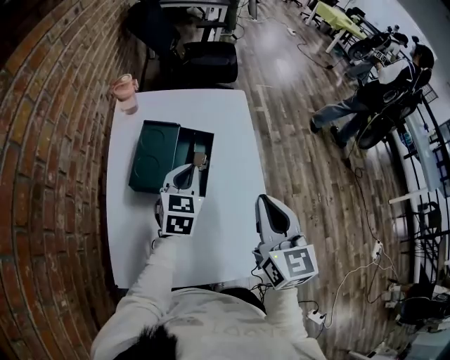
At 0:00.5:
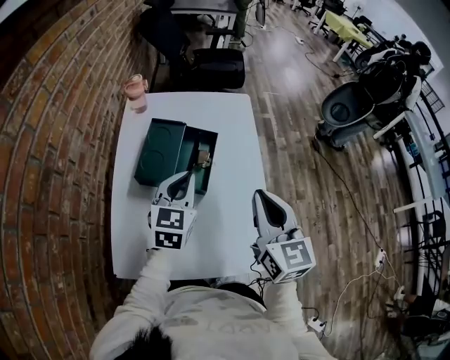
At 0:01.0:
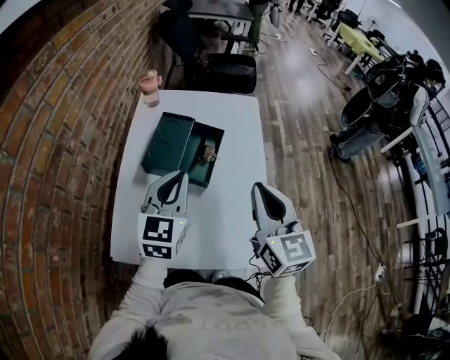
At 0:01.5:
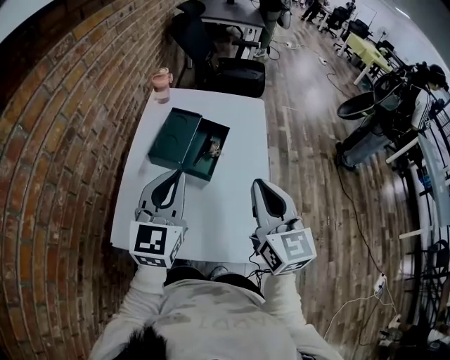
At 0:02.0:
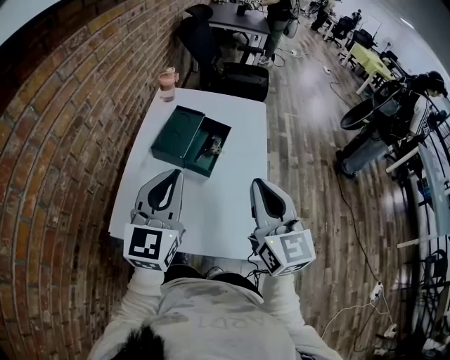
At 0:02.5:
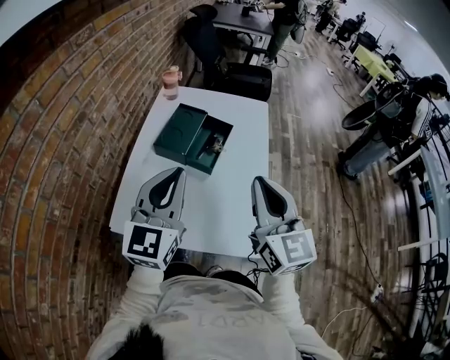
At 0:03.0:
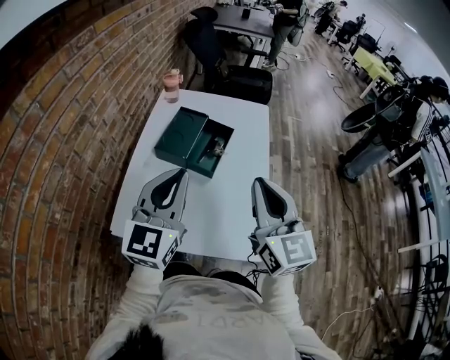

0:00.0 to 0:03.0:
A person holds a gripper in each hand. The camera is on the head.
0:00.0 to 0:01.5: The left gripper heads backward and upward, covering some 25 cm, and rotates about 20 degrees; the right gripper goes some 10 cm backward.
0:01.5 to 0:03.0: The left gripper travels backward by roughly 5 cm.

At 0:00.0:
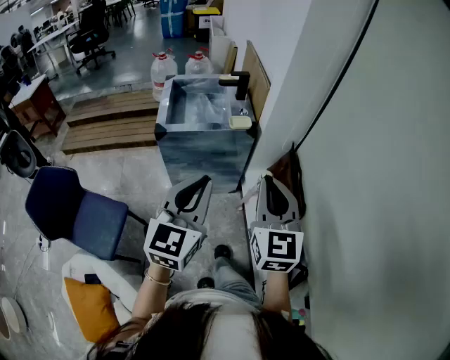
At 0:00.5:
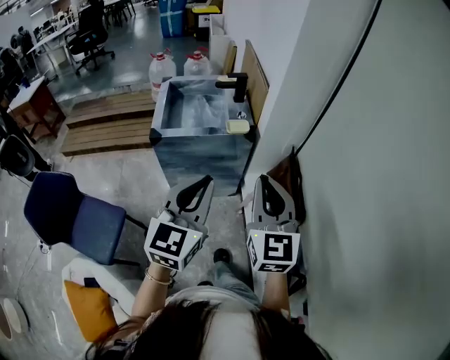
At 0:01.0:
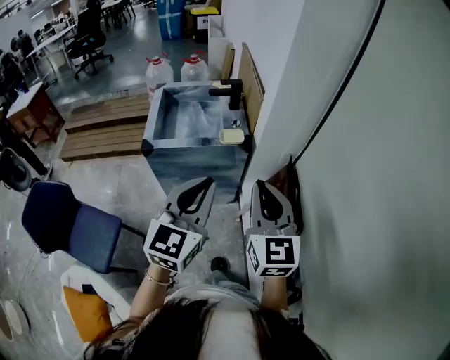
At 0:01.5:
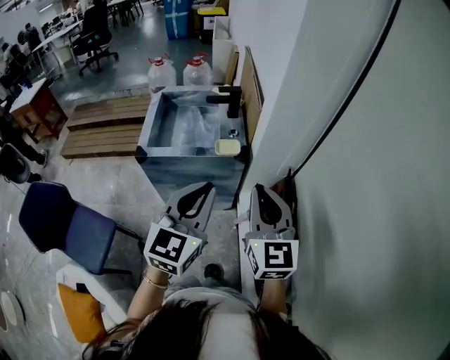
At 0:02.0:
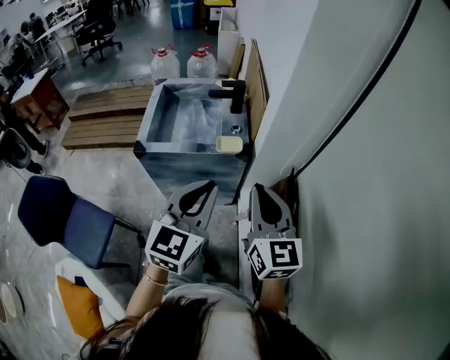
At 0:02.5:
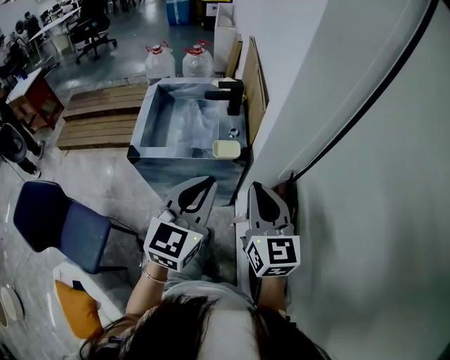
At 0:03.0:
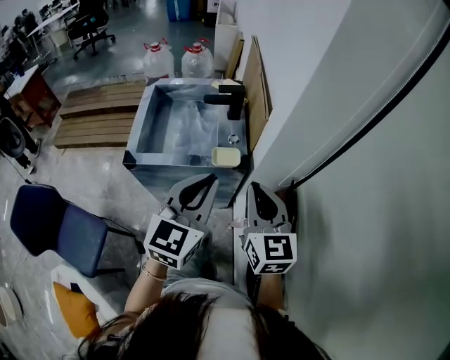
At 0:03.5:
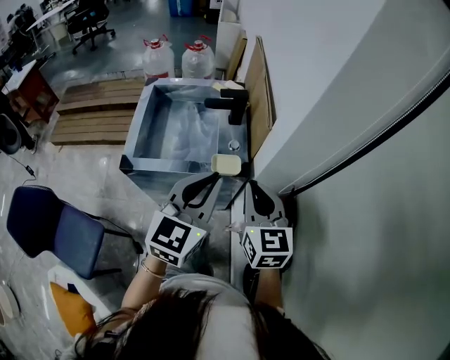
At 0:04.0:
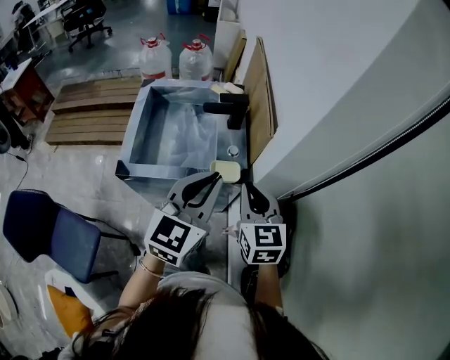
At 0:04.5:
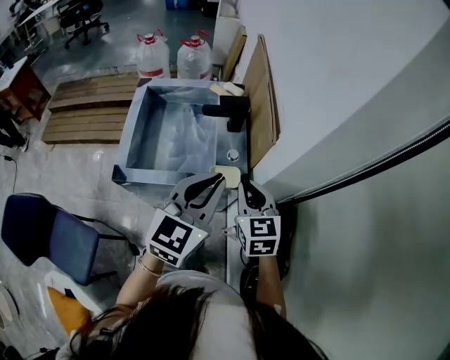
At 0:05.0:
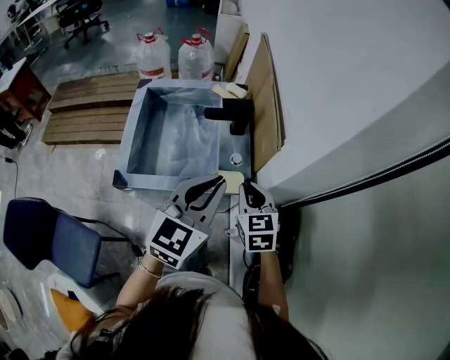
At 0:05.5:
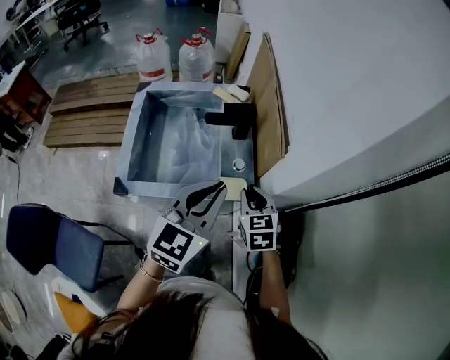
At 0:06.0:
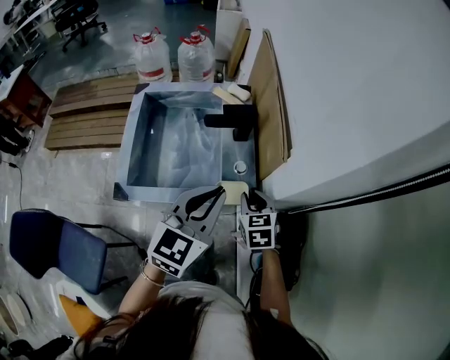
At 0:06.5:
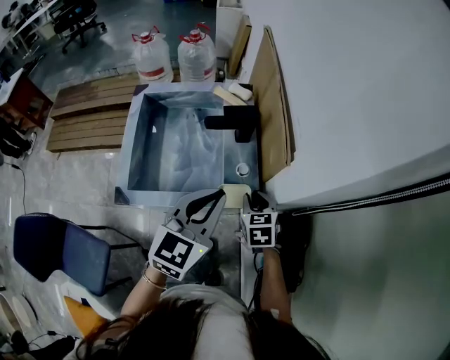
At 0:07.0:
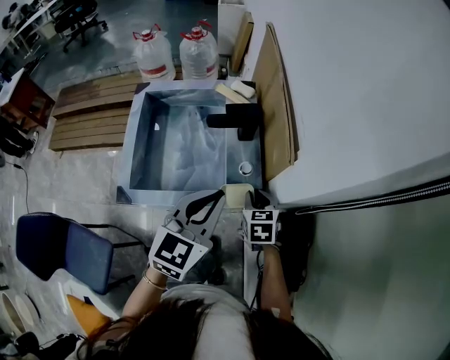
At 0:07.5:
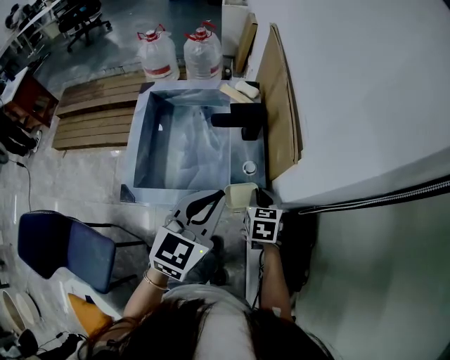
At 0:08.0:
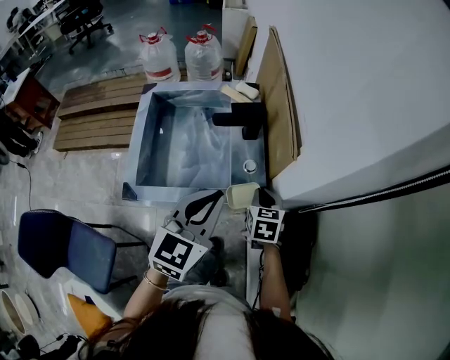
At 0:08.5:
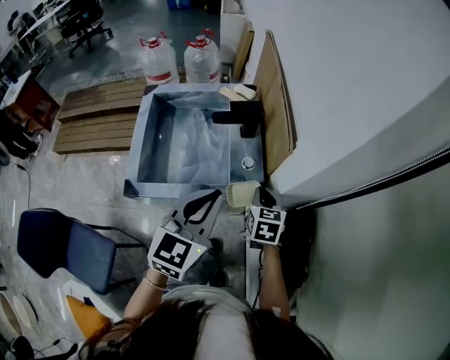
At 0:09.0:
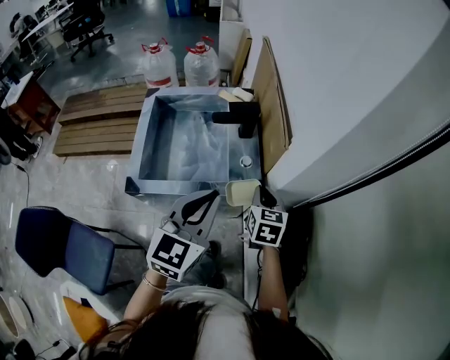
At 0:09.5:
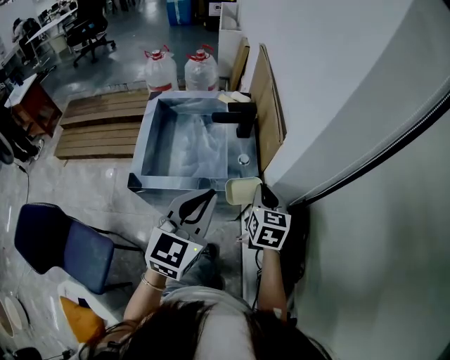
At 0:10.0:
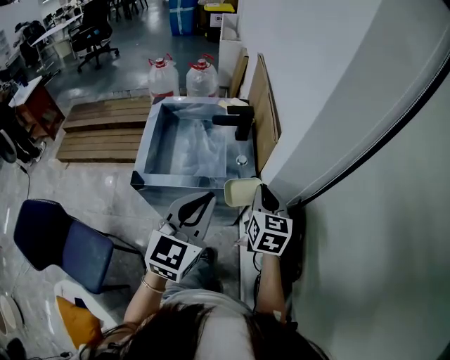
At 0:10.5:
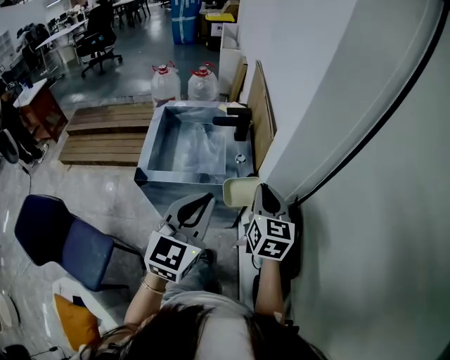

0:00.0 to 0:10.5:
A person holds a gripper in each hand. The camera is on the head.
0:00.0 to 0:02.0: The right gripper heads forward, covering about 20 cm, while the left gripper is displaced forward and to the right by some 20 cm.
0:02.0 to 0:04.0: The left gripper travels forward by about 20 cm; the right gripper goes roughly 20 cm forward and downward.
0:04.0 to 0:06.5: The right gripper travels downward and forward by about 20 cm, and rotates about 30 degrees, while the left gripper shifts approximately 10 cm forward and downward.
0:06.5 to 0:08.5: The left gripper changes place by some 5 cm.
0:08.5 to 0:10.5: The right gripper goes roughly 25 cm upward and backward, and changes its angle by about 20 degrees. Meanwhile the left gripper moves backward and upward, roughly 15 cm.

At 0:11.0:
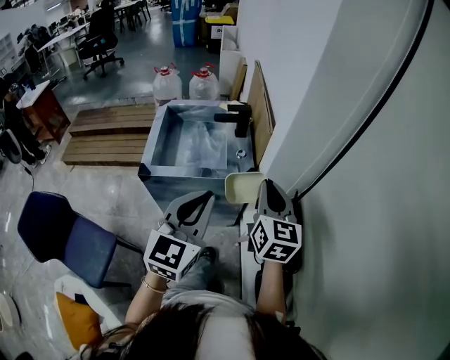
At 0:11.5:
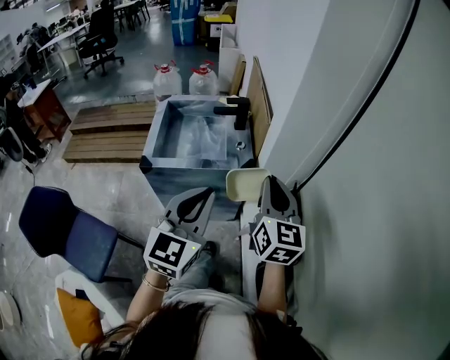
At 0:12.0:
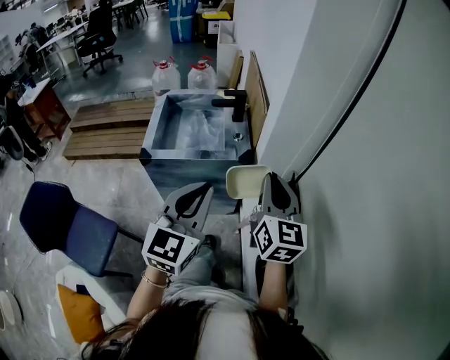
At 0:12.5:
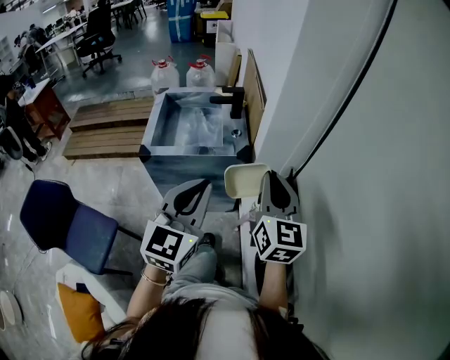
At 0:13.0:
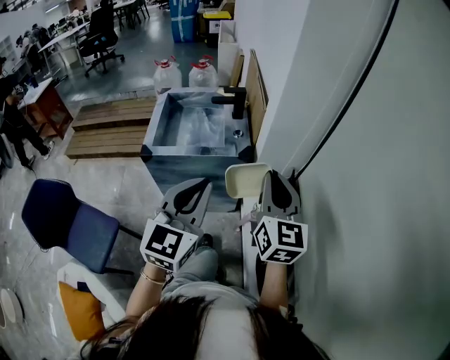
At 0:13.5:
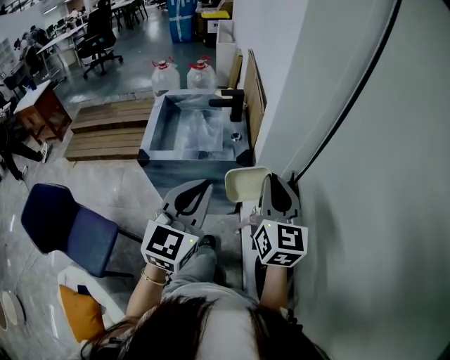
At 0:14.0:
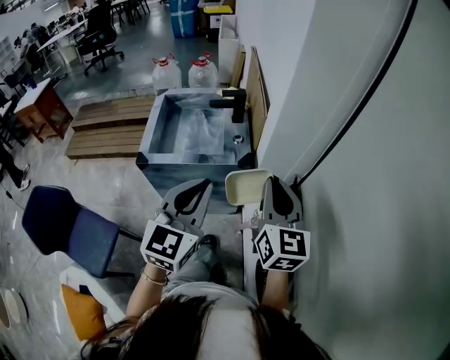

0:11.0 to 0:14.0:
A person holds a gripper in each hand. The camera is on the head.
0:11.0 to 0:12.5: The two grippers go approximately 10 cm backward.
0:12.5 to 0:14.0: The grippers both shift forward by about 5 cm.

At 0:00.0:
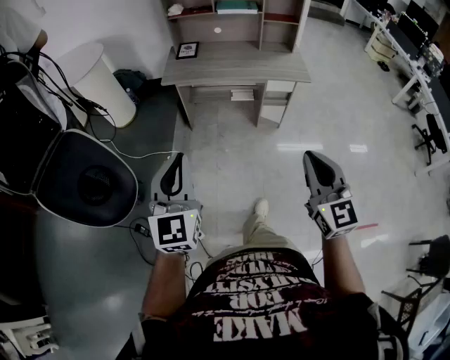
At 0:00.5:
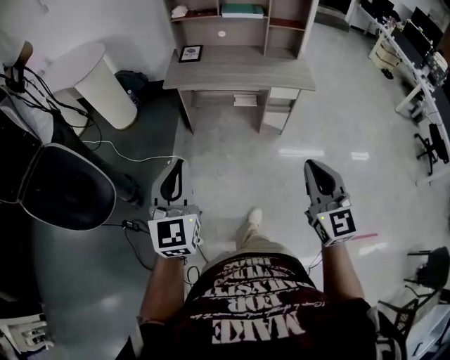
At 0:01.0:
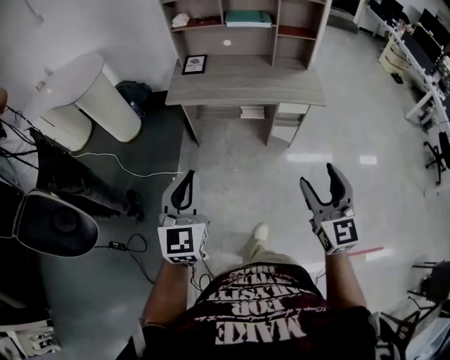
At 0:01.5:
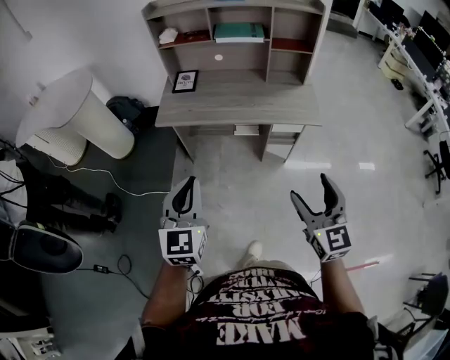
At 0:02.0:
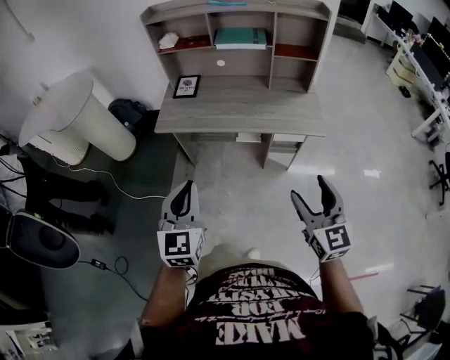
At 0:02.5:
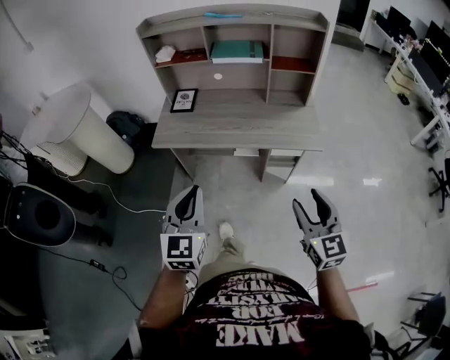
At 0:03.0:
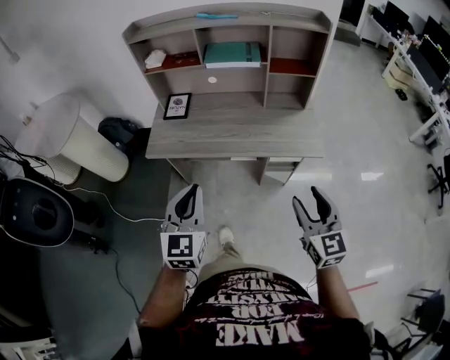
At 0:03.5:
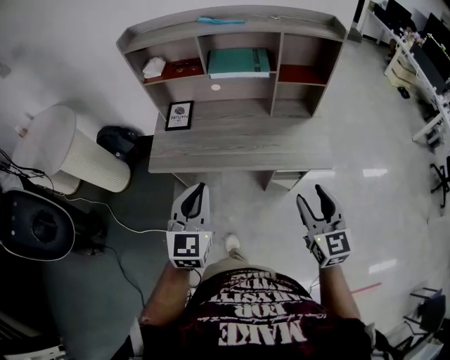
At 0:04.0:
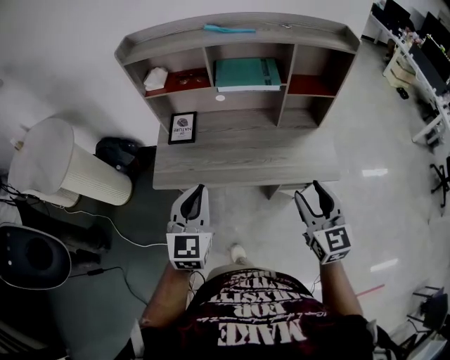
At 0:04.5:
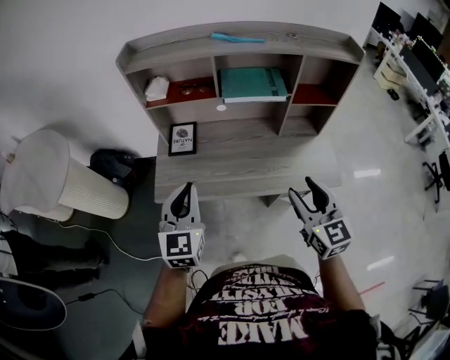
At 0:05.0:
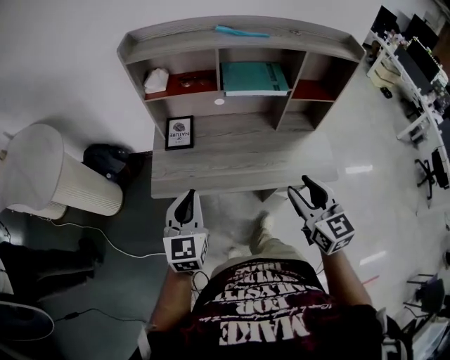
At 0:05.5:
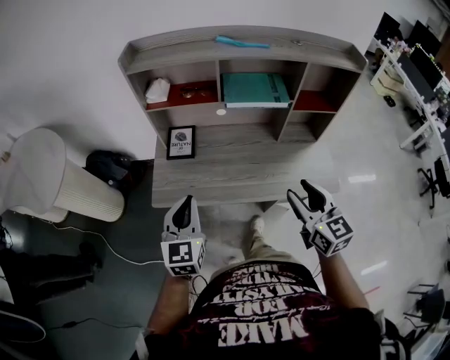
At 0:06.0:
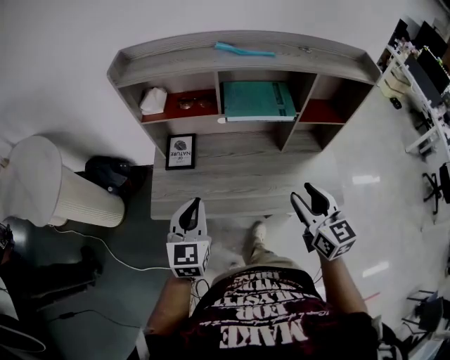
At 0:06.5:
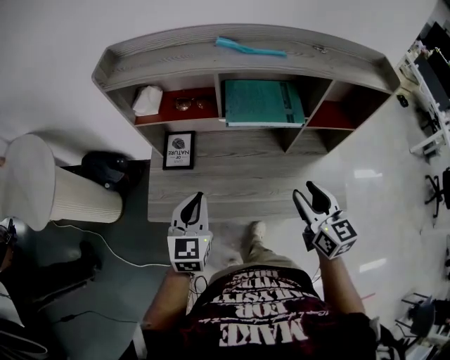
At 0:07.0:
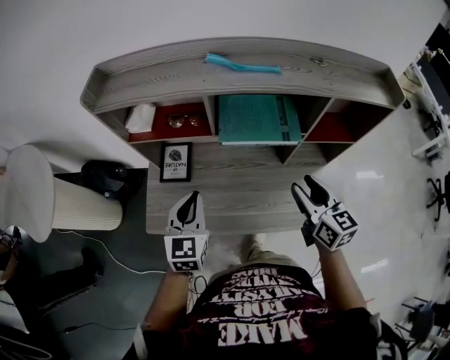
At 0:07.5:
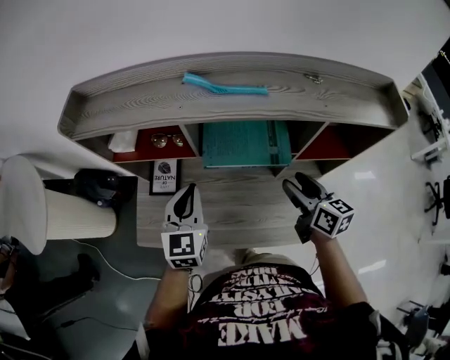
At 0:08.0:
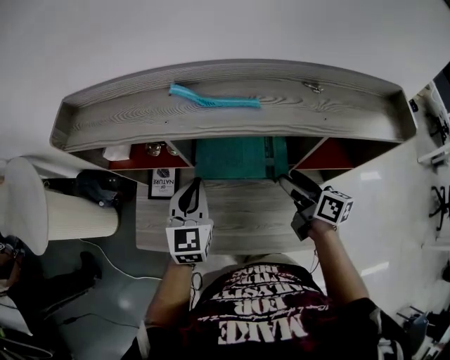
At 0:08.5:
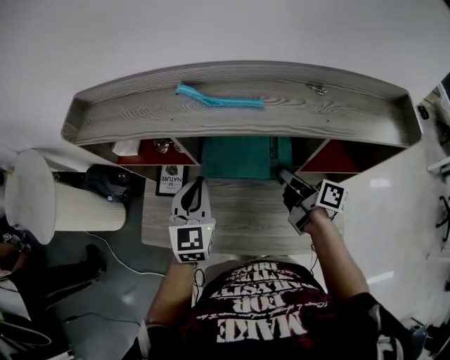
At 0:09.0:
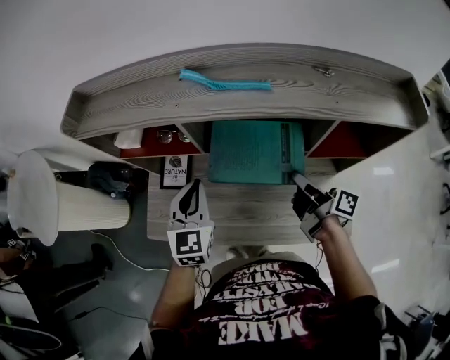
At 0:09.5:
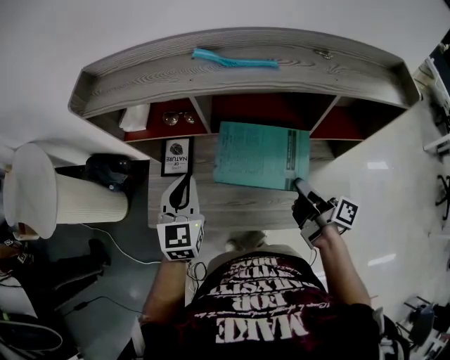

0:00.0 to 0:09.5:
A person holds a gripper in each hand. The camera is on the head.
0:00.0 to 0:02.0: Both grippers travel together forward, some 30 cm. The right gripper opens its fingers.
0:02.0 to 0:04.0: The two grippers go about 30 cm forward.
0:04.0 to 0:05.5: The right gripper heads forward and to the left, covering roughly 10 cm; the left gripper travels to the left and forward by approximately 10 cm.
0:05.5 to 0:07.5: The grippers both shift forward and to the right by approximately 30 cm. The right gripper swivels some 30 degrees.
0:07.5 to 0:09.5: The right gripper moves backward, about 5 cm, and rolls clockwise, seen from behind, by some 50 degrees. Meanwhile the left gripper ends up about 5 cm from where it was.
